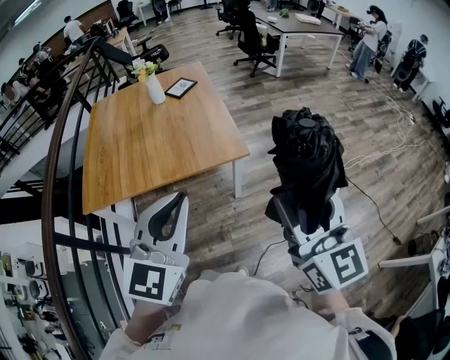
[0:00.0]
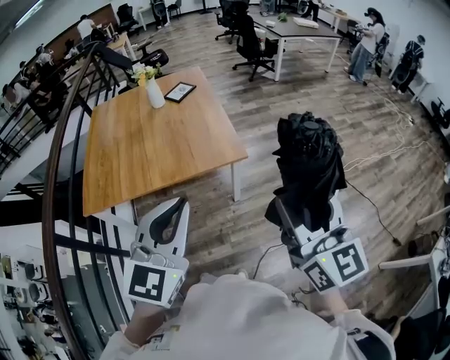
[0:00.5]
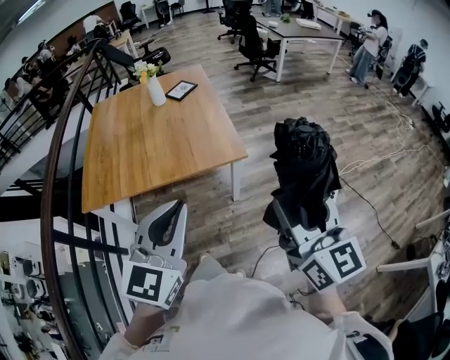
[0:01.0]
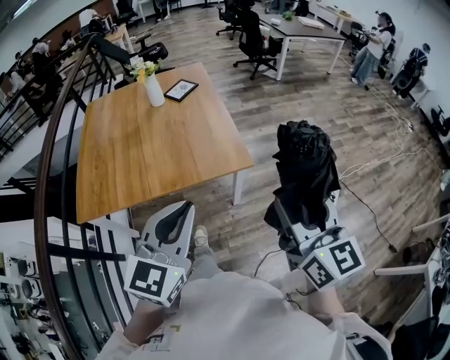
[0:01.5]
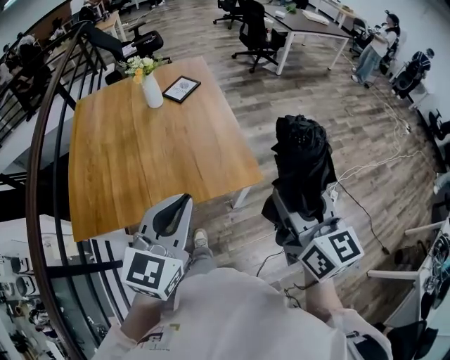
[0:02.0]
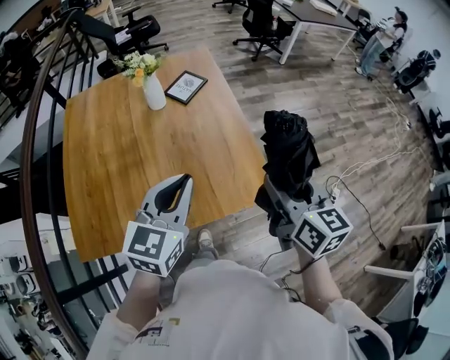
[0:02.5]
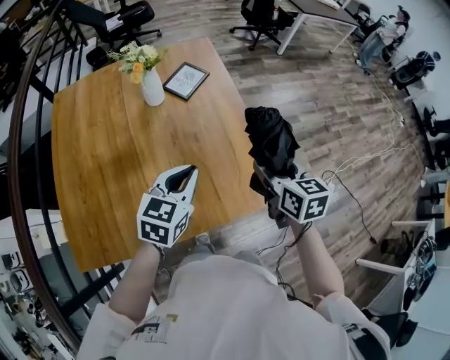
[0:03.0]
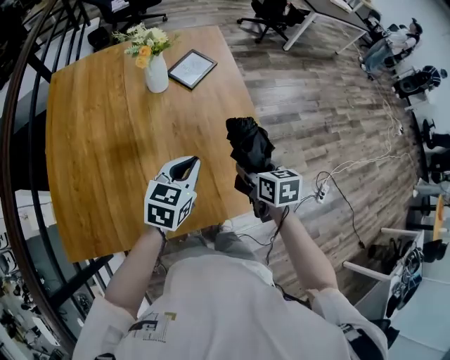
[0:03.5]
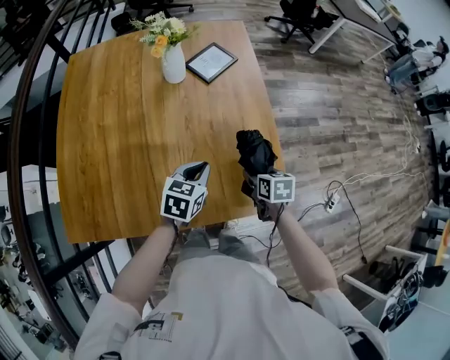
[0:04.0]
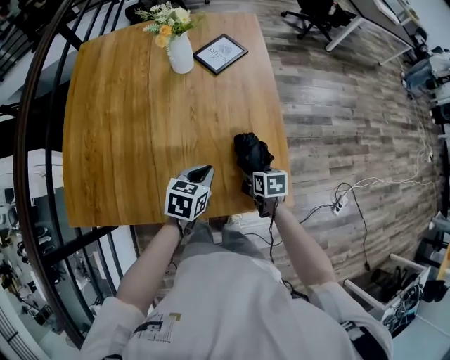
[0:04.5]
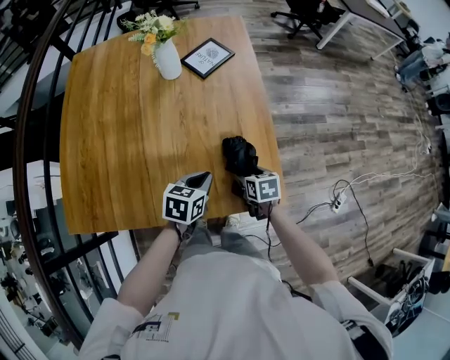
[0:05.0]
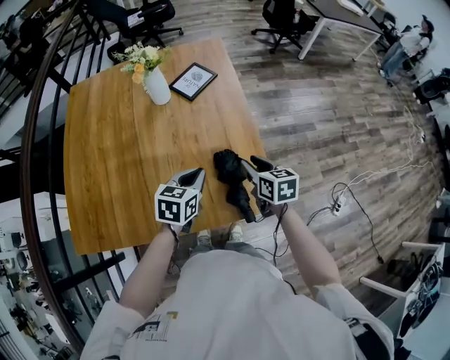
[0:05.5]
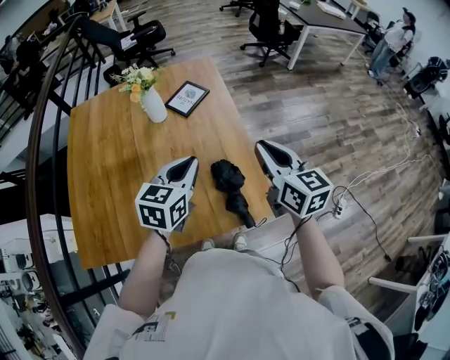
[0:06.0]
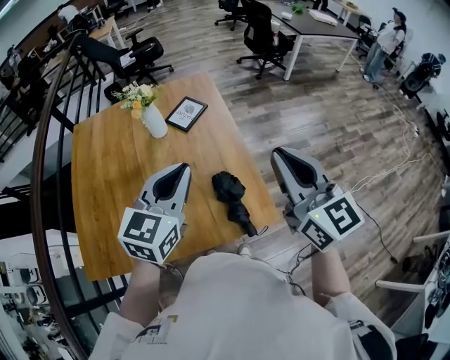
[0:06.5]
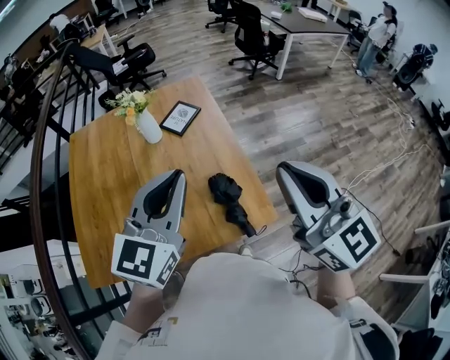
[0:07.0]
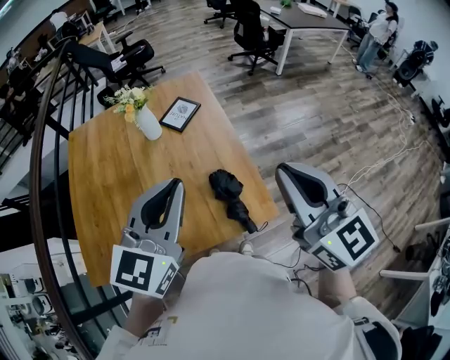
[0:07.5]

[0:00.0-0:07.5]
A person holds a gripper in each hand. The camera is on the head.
0:00.0 to 0:02.0: The right gripper moves forward, some 25 cm. The left gripper moves forward and to the left, roughly 25 cm.
0:02.0 to 0:04.0: The right gripper goes about 50 cm downward and forward, and tilts its fingers approximately 50 degrees downward; the left gripper goes about 40 cm forward and downward, and turns by approximately 40 degrees.
0:04.0 to 0:05.5: The right gripper moves upward, approximately 10 cm, and closes. The left gripper is displaced to the right and upward by about 10 cm.
0:05.5 to 0:07.5: The two grippers go roughly 35 cm upward. The right gripper angles its fingers upward, by roughly 40 degrees, and closes up; the left gripper angles its fingers upward, by about 30 degrees.

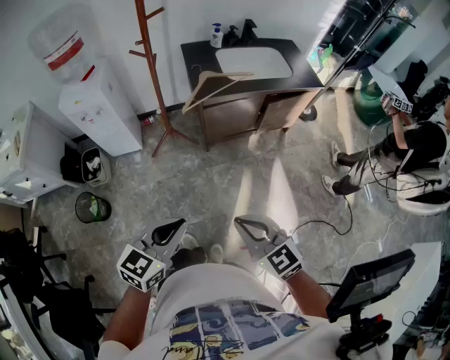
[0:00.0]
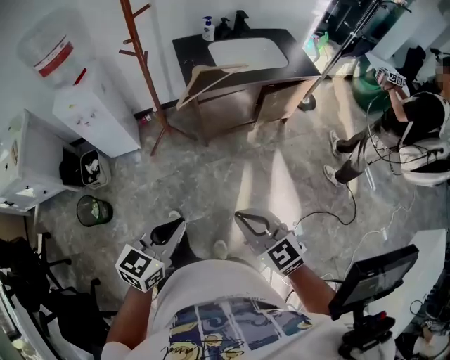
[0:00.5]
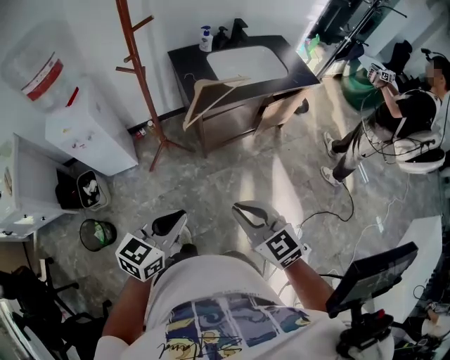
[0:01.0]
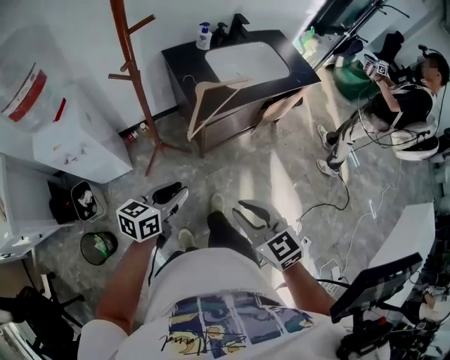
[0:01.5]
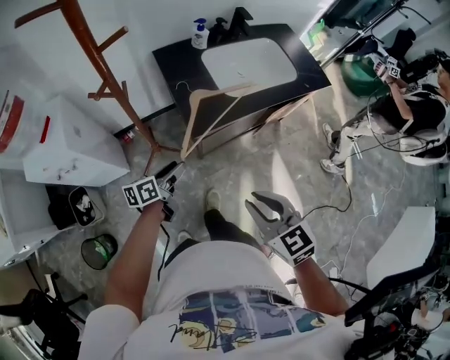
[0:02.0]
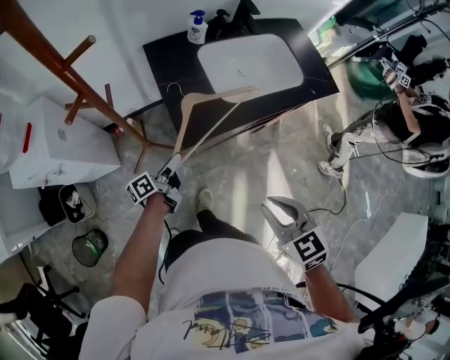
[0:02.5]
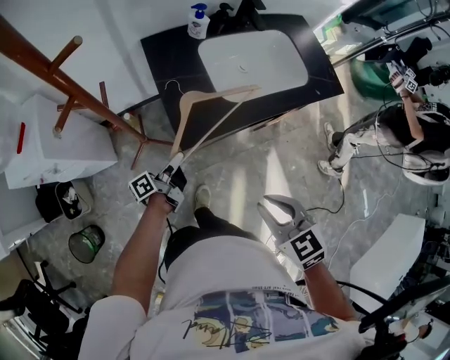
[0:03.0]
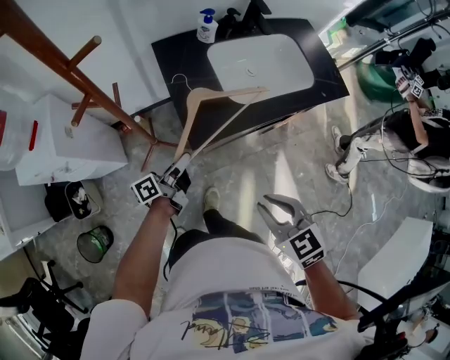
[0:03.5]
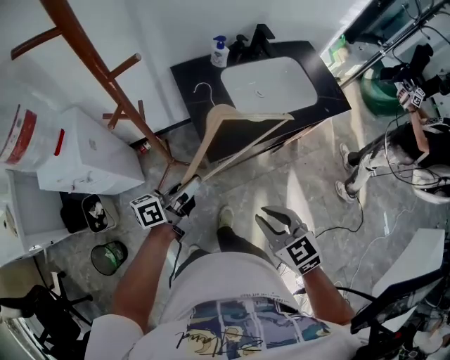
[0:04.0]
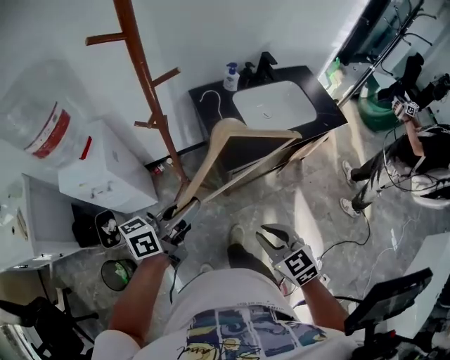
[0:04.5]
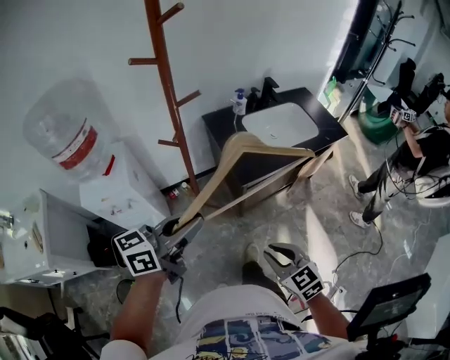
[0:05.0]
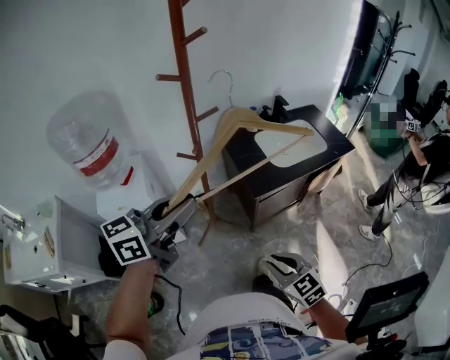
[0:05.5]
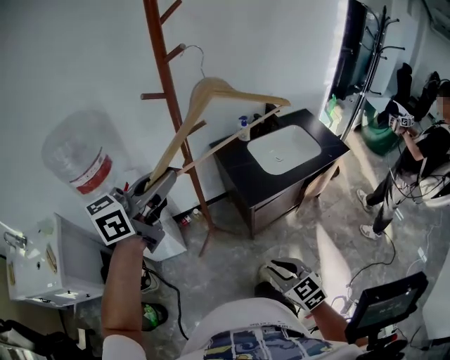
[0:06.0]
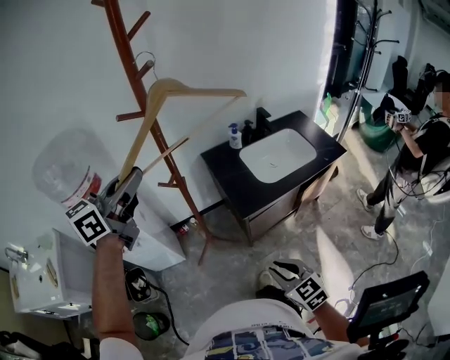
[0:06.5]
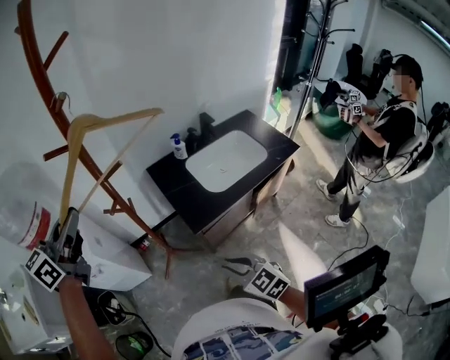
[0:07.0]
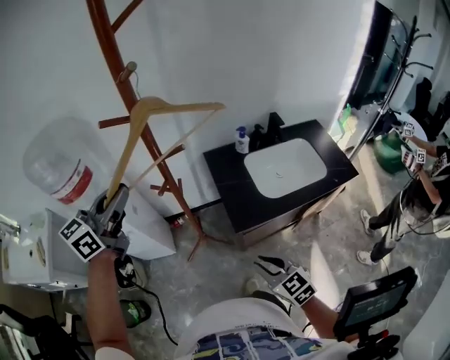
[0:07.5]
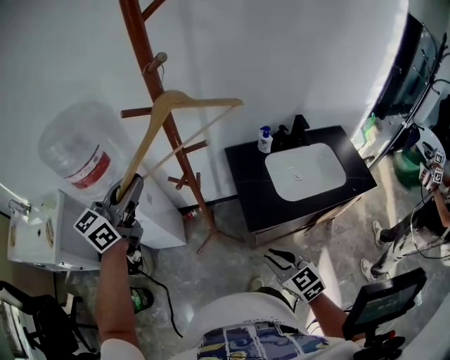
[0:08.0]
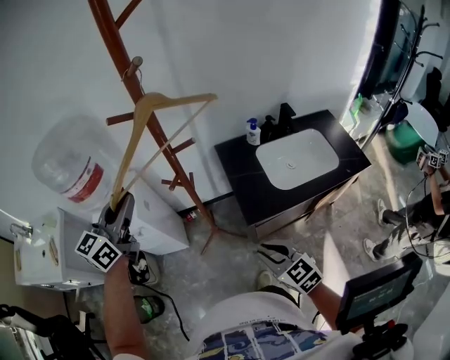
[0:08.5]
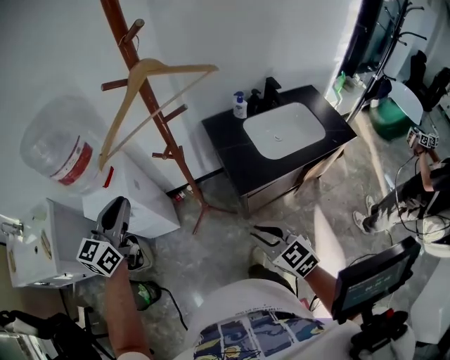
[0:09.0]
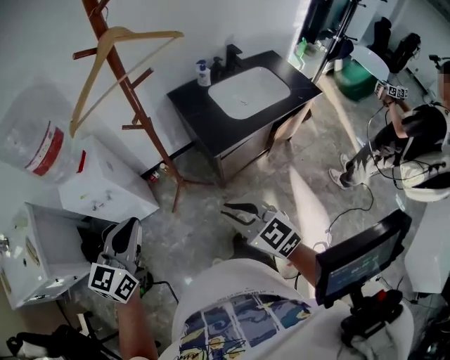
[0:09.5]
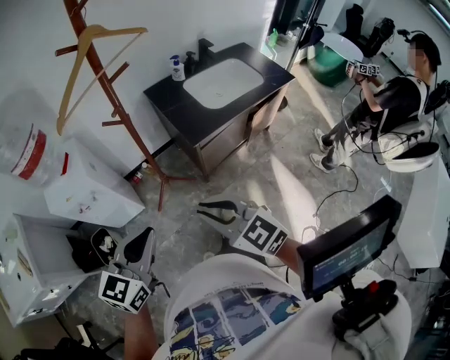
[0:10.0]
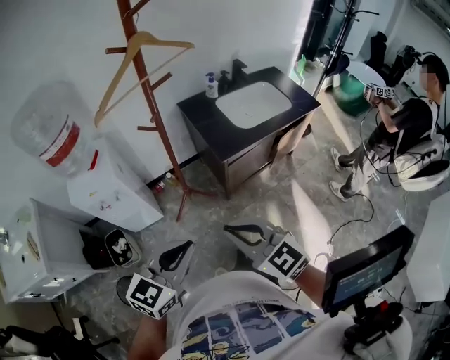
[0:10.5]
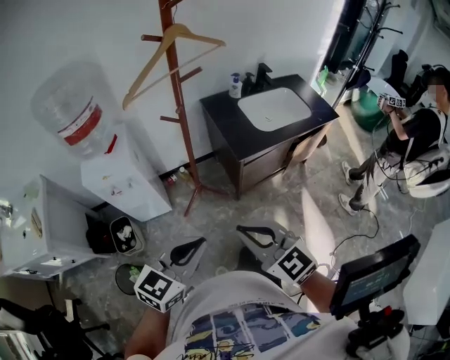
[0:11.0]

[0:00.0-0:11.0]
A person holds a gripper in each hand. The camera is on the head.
0:00.0 to 0:02.0: The right gripper heads forward, covering roughly 30 cm, and changes its angle by approximately 20 degrees. The left gripper is displaced forward and downward by approximately 50 cm, twists about 40 degrees counterclockwise, seen from behind, and opens up.
0:02.0 to 0:03.5: Both grippers travel together forward, some 5 cm. The left gripper swivels roughly 30 degrees, and closes up.
0:03.5 to 0:05.5: The left gripper moves upward and backward, roughly 40 cm, and rolls clockwise, seen from behind, by some 60 degrees, while the right gripper shifts about 20 cm backward and to the left.
0:05.5 to 0:07.5: The right gripper is displaced forward and to the right by about 15 cm, while the left gripper travels forward by about 15 cm, and turns by approximately 30 degrees.
0:07.5 to 0:09.0: The right gripper heads to the left, covering roughly 5 cm. Meanwhile the left gripper travels downward, to the left and backward by approximately 15 cm.
0:09.0 to 0:11.0: The left gripper moves backward and to the right, roughly 30 cm, and turns by approximately 30 degrees; the right gripper goes approximately 20 cm backward, to the left and upward.

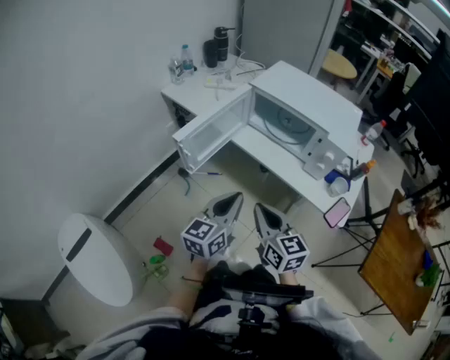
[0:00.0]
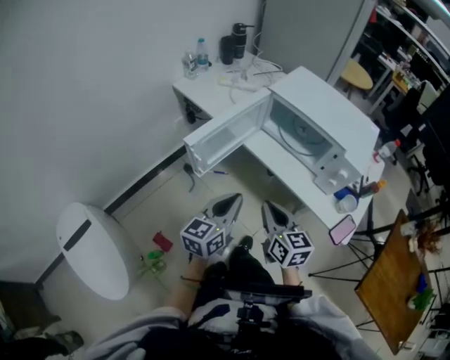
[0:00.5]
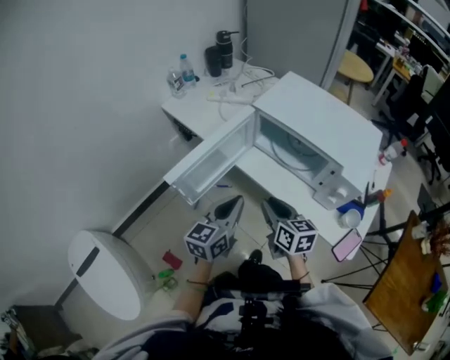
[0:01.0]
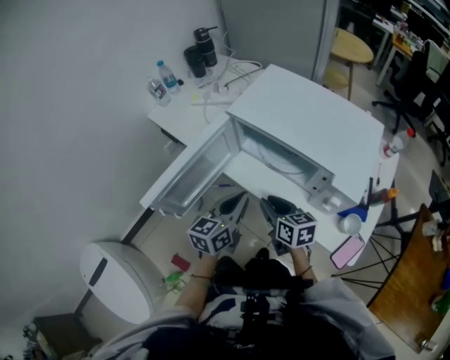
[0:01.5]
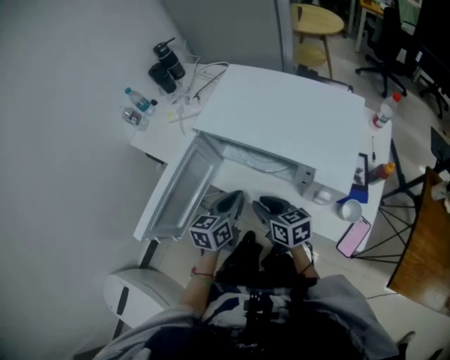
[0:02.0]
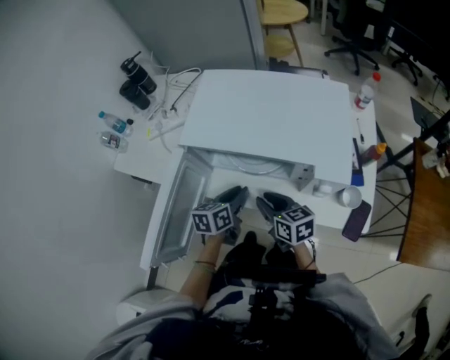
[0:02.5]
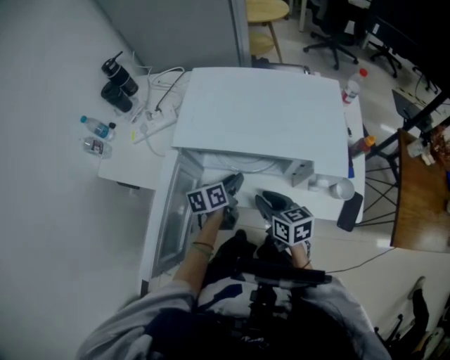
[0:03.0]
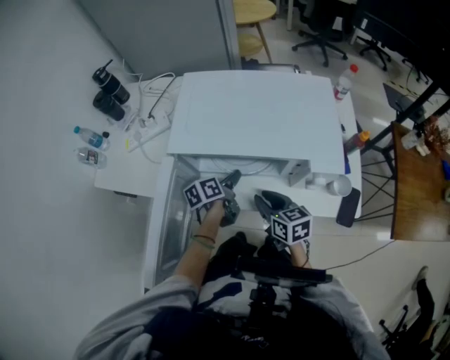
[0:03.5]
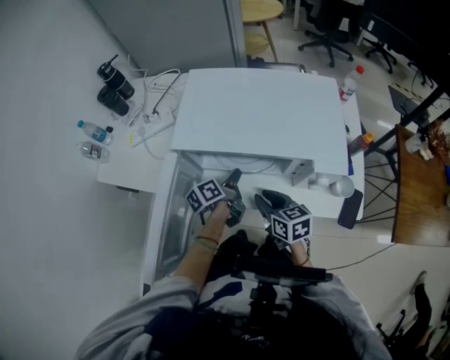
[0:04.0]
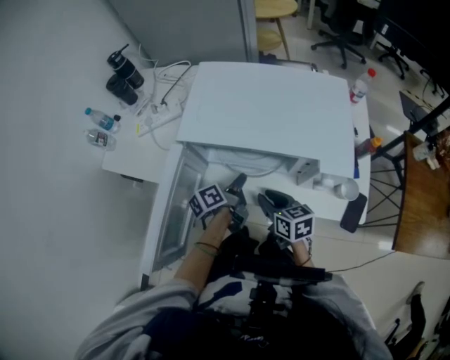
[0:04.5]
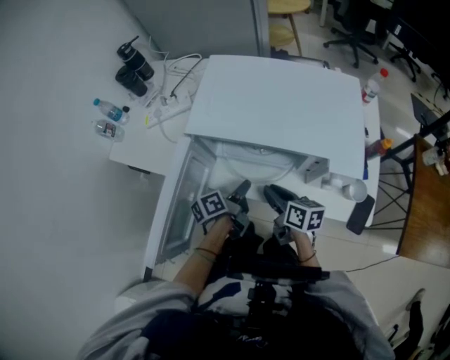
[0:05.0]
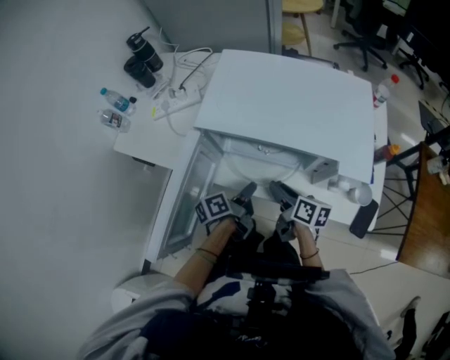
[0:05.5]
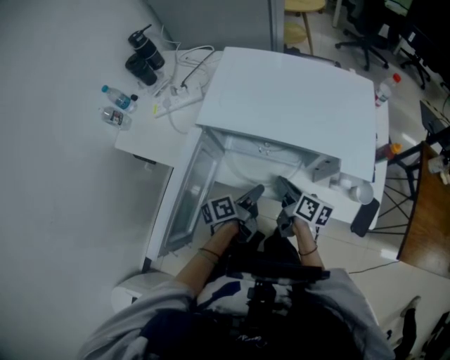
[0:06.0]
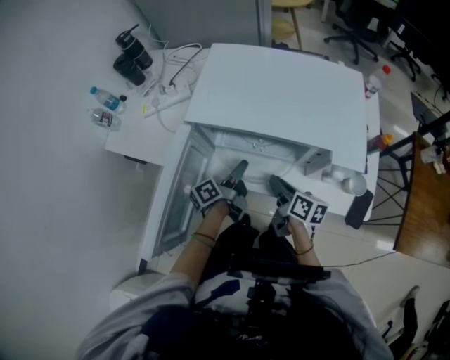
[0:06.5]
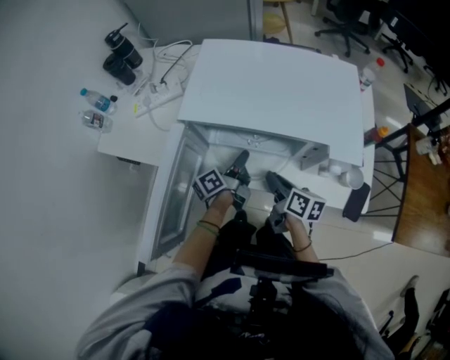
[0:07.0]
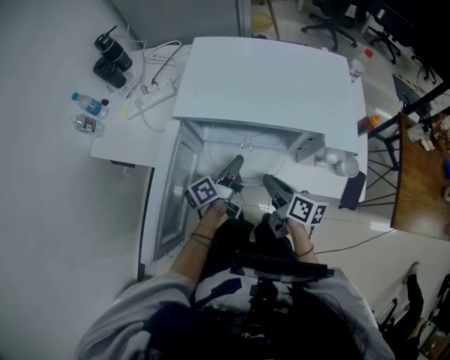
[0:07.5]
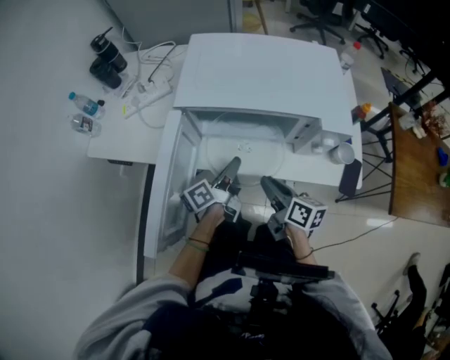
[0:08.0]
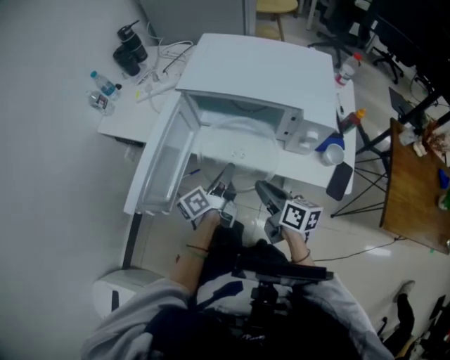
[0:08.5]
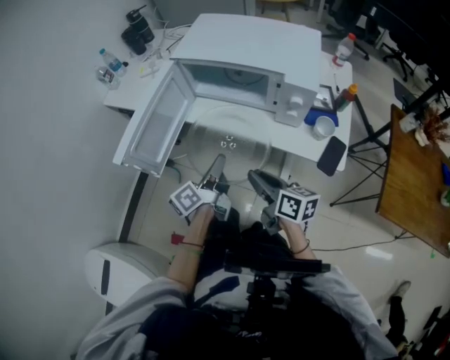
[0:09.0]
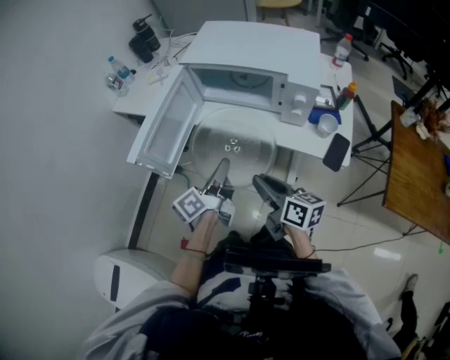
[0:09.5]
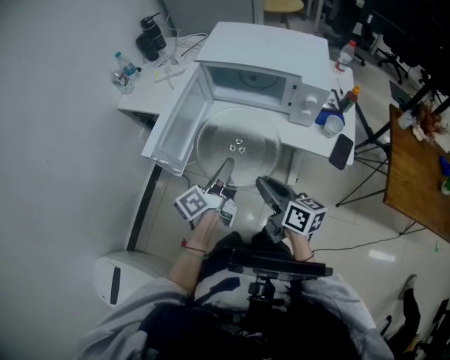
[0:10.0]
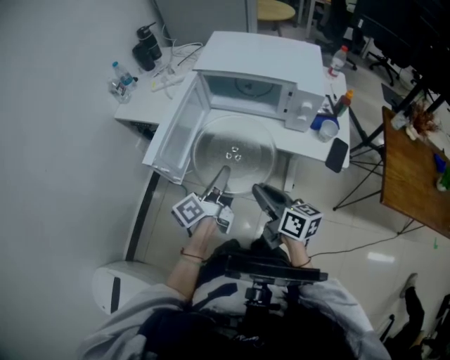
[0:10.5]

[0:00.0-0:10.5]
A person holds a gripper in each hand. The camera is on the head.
0:00.0 to 0:02.0: The right gripper heads forward and downward, covering approximately 25 cm, swivels roughly 20 degrees, and opens. Meanwhile the left gripper heads forward, covering some 25 cm.
0:02.0 to 0:04.0: The right gripper changes its angle by roughly 20 degrees. Meanwhile the left gripper shifts by approximately 15 cm, and twists some 40 degrees counterclockwise, seen from behind.
0:04.0 to 0:06.5: The right gripper turns by roughly 30 degrees, while the left gripper opens its fingers.
0:06.5 to 0:08.5: The right gripper shifts about 15 cm backward; the left gripper is displaced backward and upward by approximately 15 cm, and closes.
0:08.5 to 0:10.5: The two grippers go approximately 15 cm backward and to the left.
